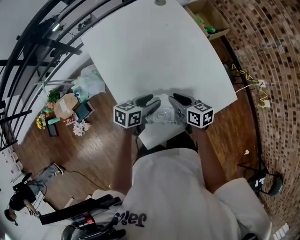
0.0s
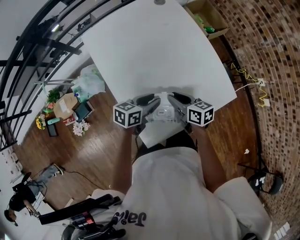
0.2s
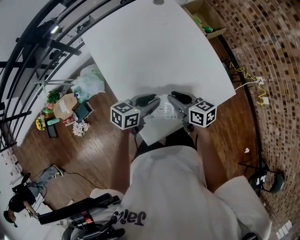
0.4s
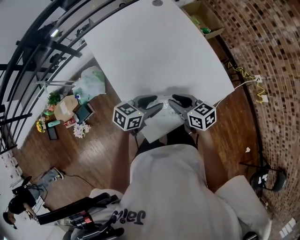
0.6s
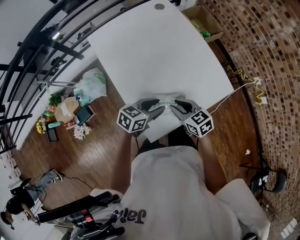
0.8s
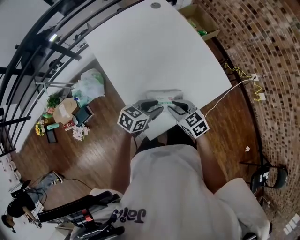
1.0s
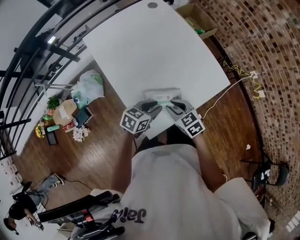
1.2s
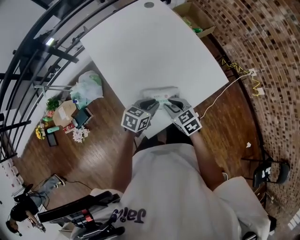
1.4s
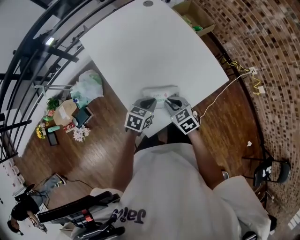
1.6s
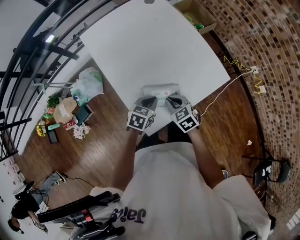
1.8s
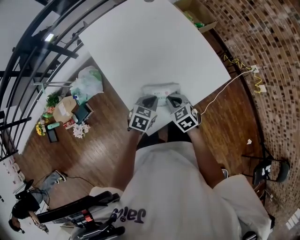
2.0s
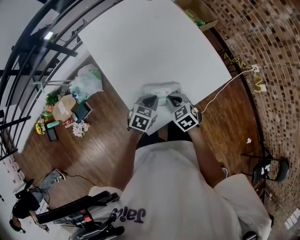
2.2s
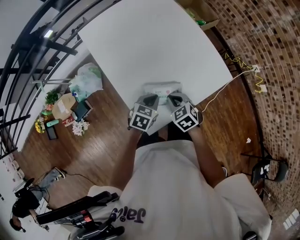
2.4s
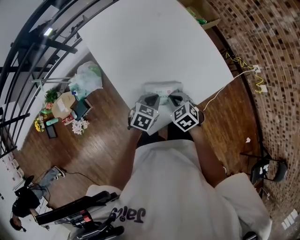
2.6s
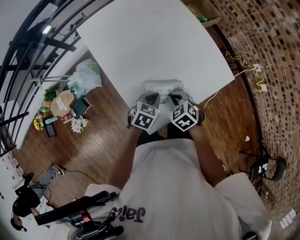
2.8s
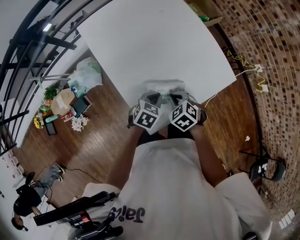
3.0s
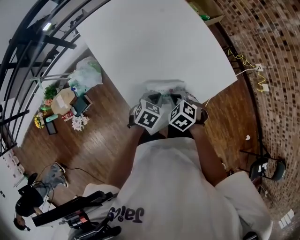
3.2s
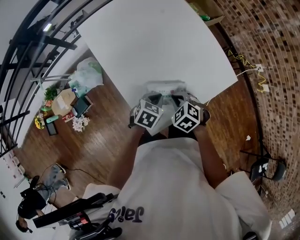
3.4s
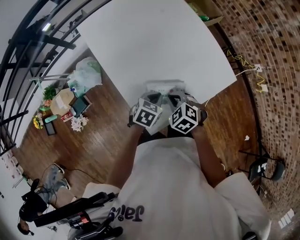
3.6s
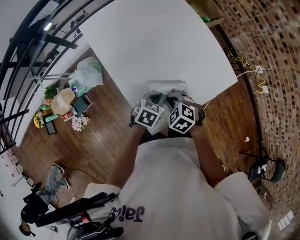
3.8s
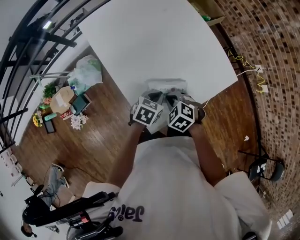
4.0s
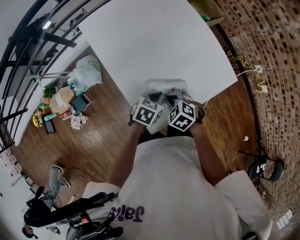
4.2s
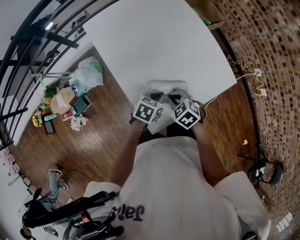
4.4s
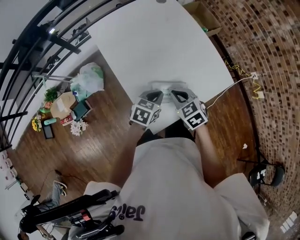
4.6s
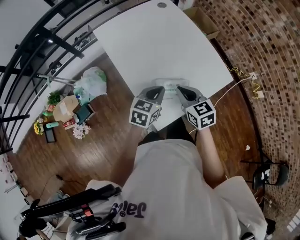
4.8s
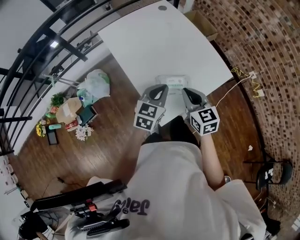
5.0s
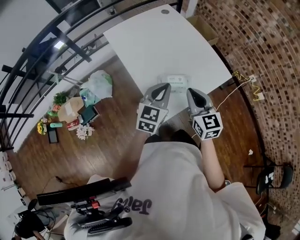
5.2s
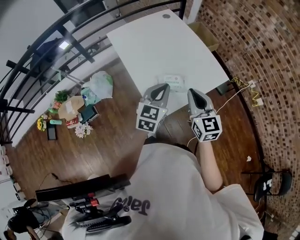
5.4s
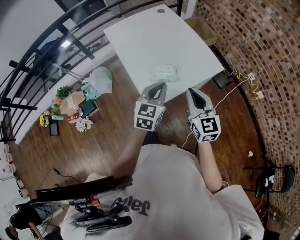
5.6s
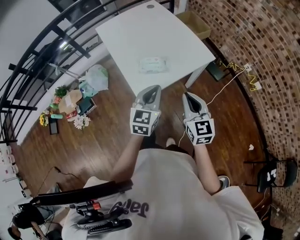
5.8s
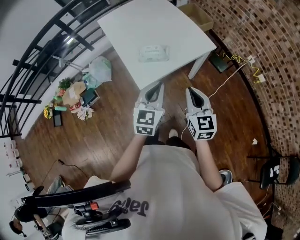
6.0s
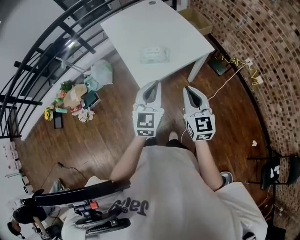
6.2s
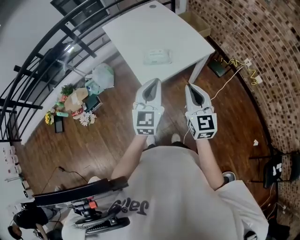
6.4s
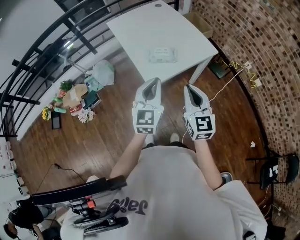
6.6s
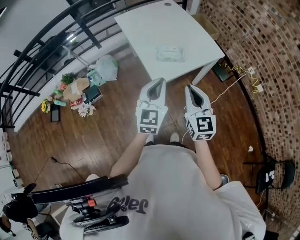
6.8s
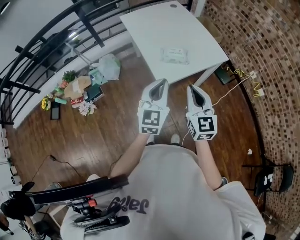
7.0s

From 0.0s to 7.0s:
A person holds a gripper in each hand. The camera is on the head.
From 0.0s to 1.4s: Both grippers move backward, some 10 cm. The left gripper closes up. The right gripper turns by about 30 degrees.
From 1.4s to 2.8s: The right gripper closes its fingers.
From 2.8s to 4.2s: The grippers stay close to where they were, moving slightly.
From 4.2s to 5.6s: The left gripper heads upward and backward, covering about 25 cm, and tilts its fingers approximately 30 degrees upward. Meanwhile the right gripper goes some 30 cm upward, backward and to the right, and tips its fingers upward by approximately 50 degrees.
From 5.6s to 7.0s: The left gripper moves backward and upward, approximately 15 cm, while the right gripper travels backward by roughly 15 cm.

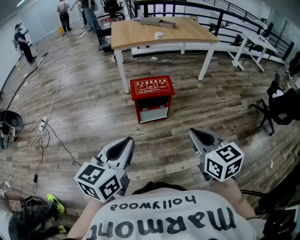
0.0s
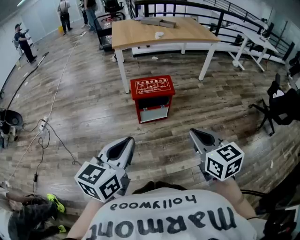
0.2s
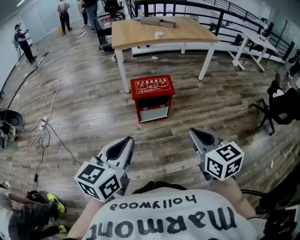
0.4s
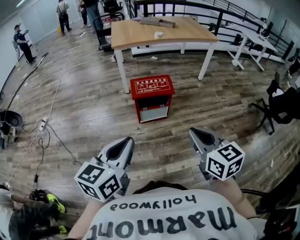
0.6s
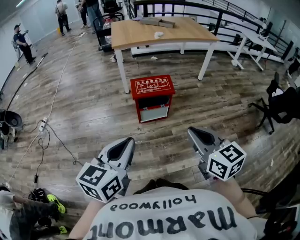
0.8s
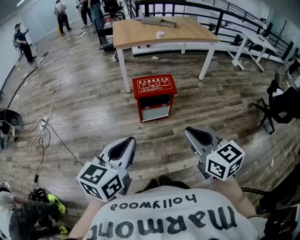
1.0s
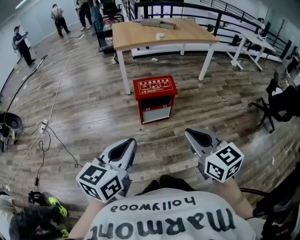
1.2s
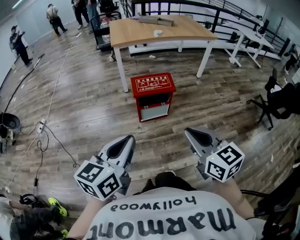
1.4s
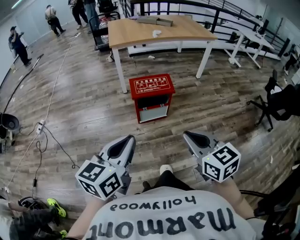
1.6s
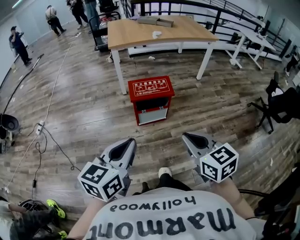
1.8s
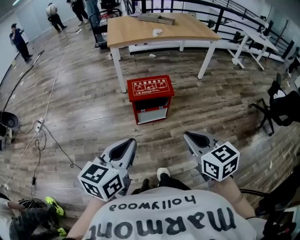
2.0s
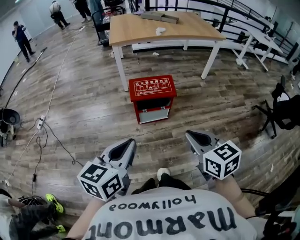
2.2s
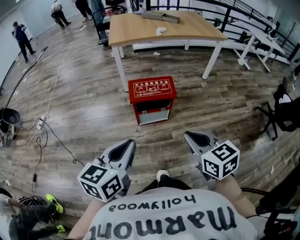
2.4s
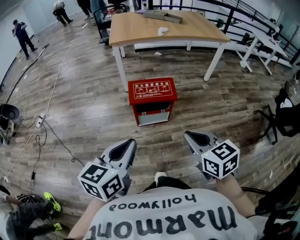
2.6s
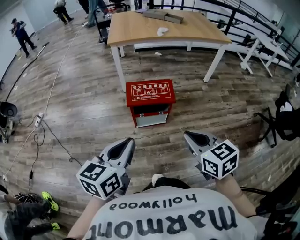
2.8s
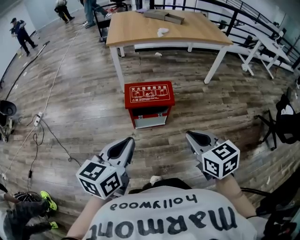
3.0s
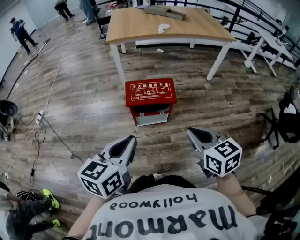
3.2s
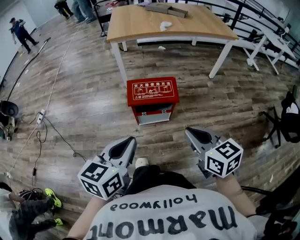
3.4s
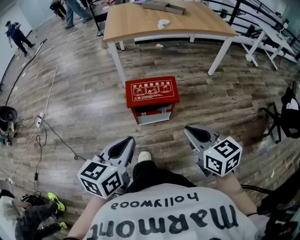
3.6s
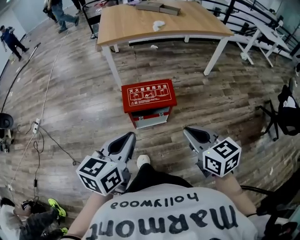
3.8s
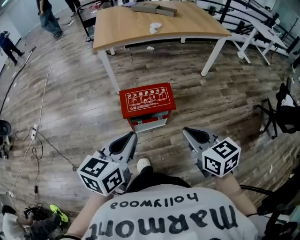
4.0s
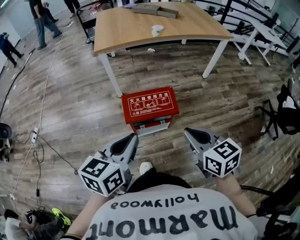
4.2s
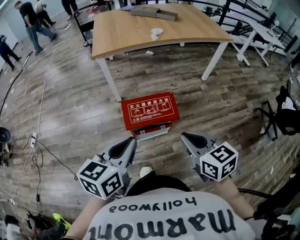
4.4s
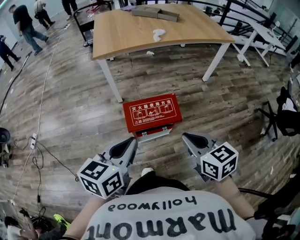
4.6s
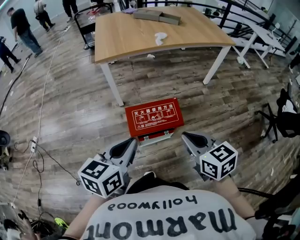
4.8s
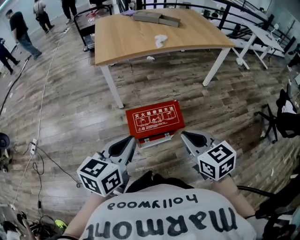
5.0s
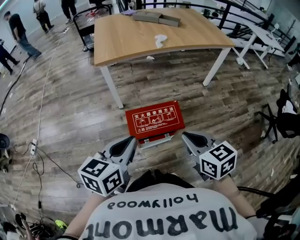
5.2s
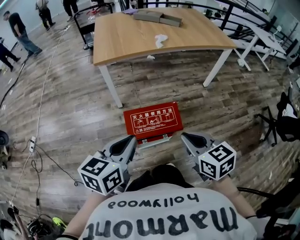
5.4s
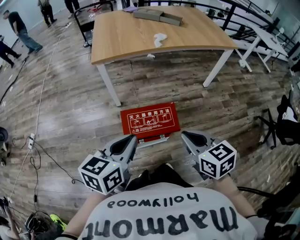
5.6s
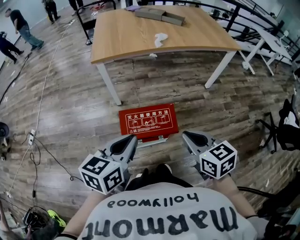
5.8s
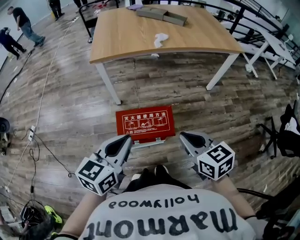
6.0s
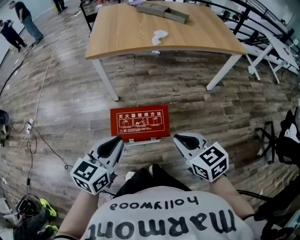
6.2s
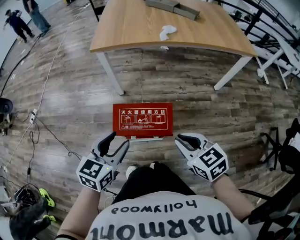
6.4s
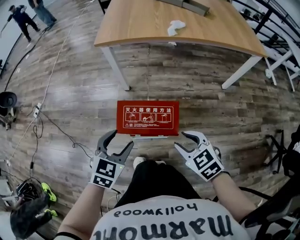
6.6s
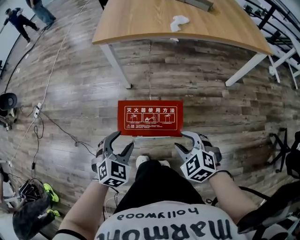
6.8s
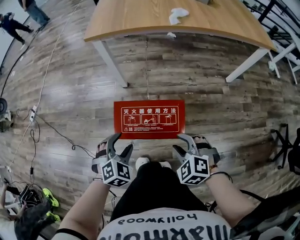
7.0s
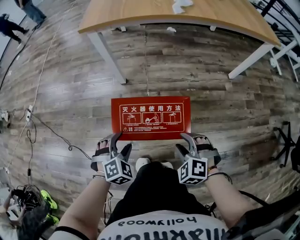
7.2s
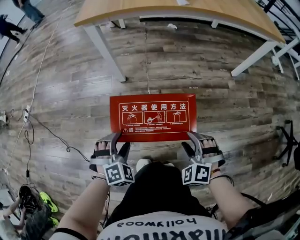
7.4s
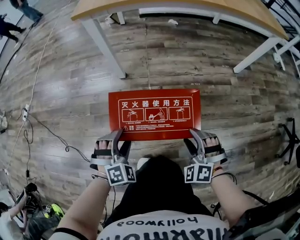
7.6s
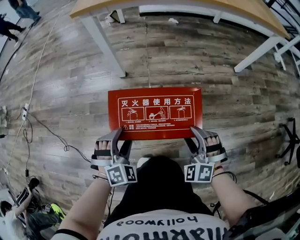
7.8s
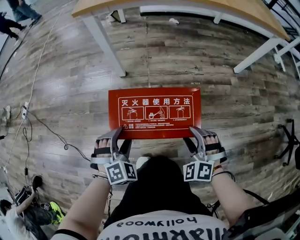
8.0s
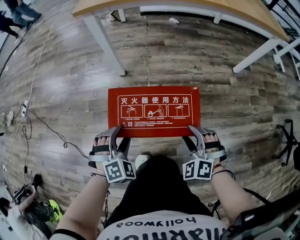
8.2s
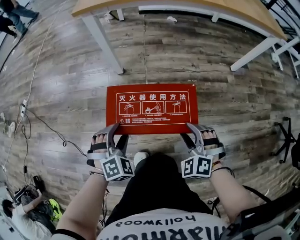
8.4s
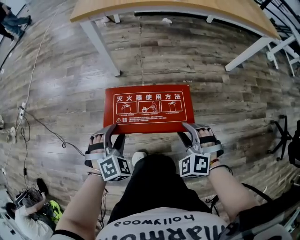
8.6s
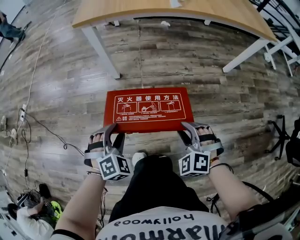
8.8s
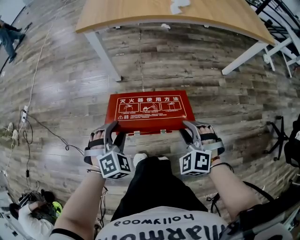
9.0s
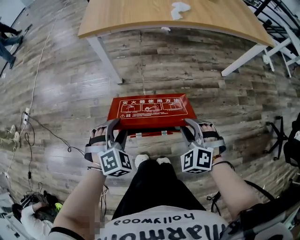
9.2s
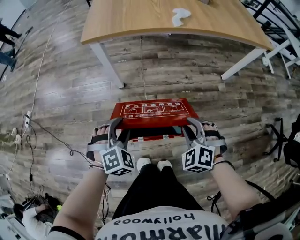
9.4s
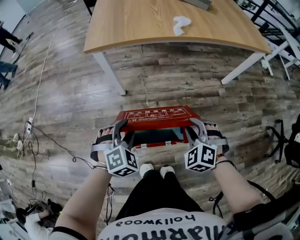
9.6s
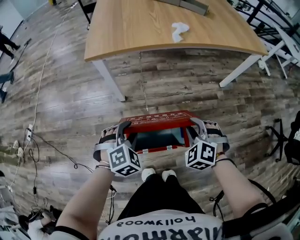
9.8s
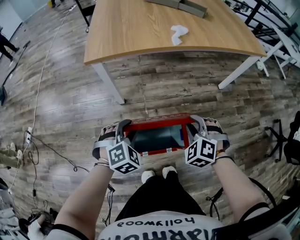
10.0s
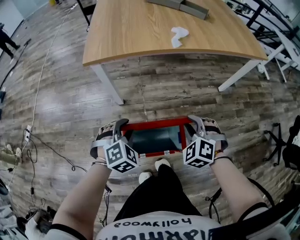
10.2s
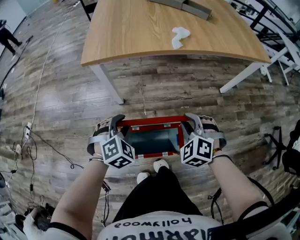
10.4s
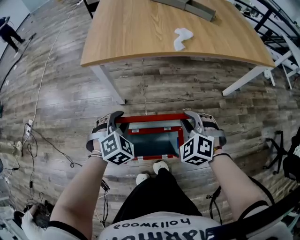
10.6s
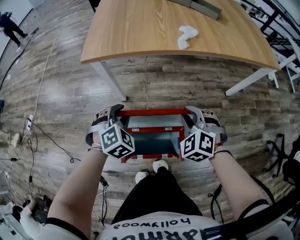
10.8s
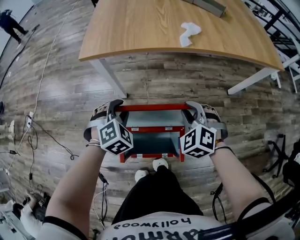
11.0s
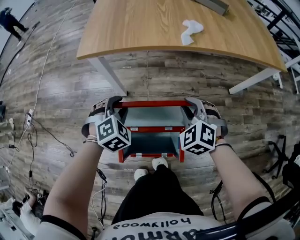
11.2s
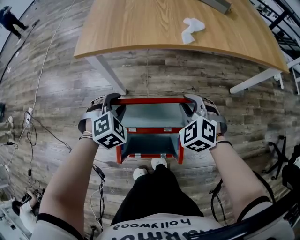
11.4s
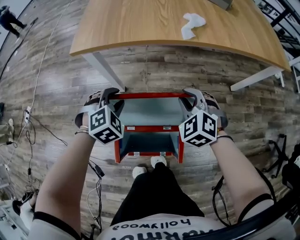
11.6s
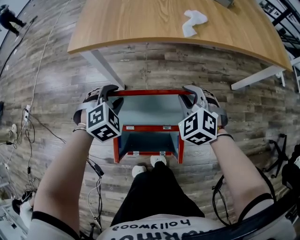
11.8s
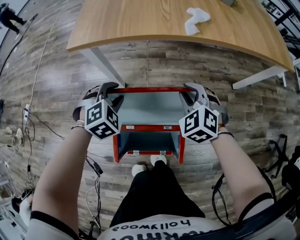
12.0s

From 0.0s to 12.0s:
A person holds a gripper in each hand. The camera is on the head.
From 0.0s to 1.6s: The grippers make only small movements.
From 1.6s to 3.0s: The left gripper heads forward, covering some 10 cm. The right gripper heads forward and to the right, covering some 15 cm.
From 3.0s to 4.4s: The right gripper is displaced forward and to the left by some 15 cm. Meanwhile the left gripper is displaced forward by roughly 15 cm.
From 4.4s to 6.0s: The two grippers go approximately 10 cm forward.
From 6.0s to 7.6s: Both grippers travel together downward, roughly 40 cm. The left gripper rotates around the line of its fingers by about 60 degrees, clockwise from behind, and opens up; the right gripper rolls counterclockwise, seen from behind, by roughly 70 degrees, and opens up.
From 7.6s to 9.0s: Both grippers move upward, some 10 cm. The right gripper closes.
From 9.0s to 10.4s: Both grippers travel together forward and upward, about 20 cm.
From 10.4s to 12.0s: The right gripper goes about 15 cm forward; the left gripper moves forward and downward, roughly 15 cm.

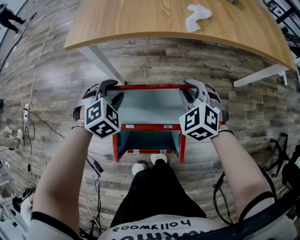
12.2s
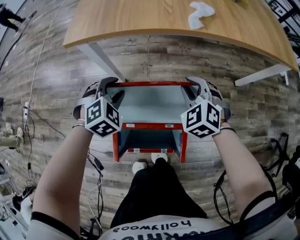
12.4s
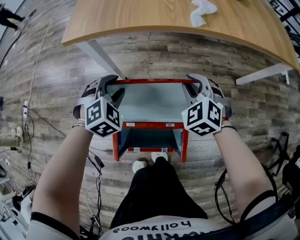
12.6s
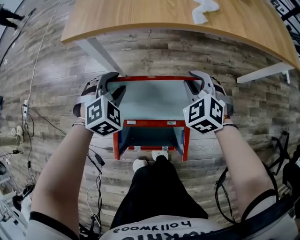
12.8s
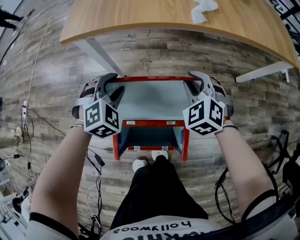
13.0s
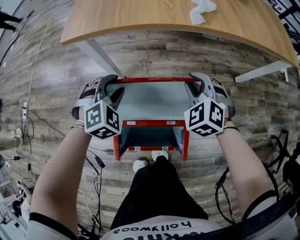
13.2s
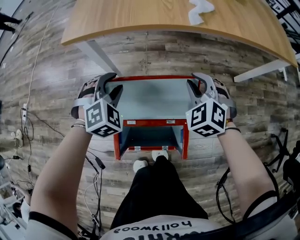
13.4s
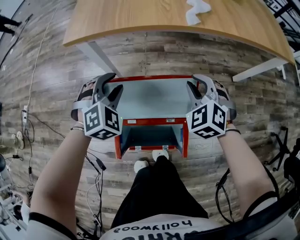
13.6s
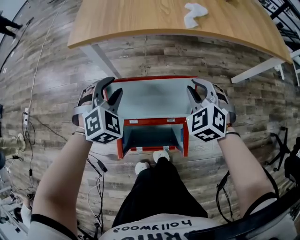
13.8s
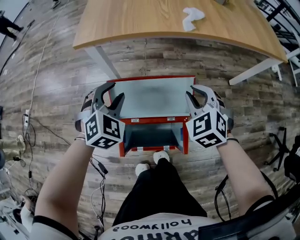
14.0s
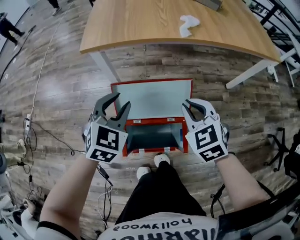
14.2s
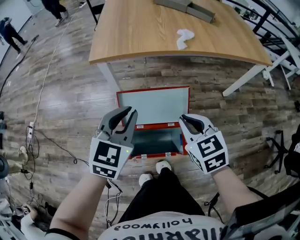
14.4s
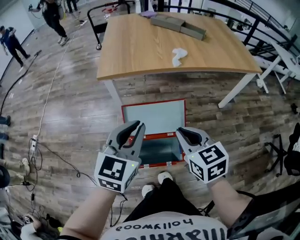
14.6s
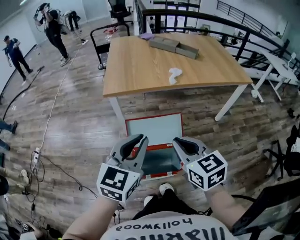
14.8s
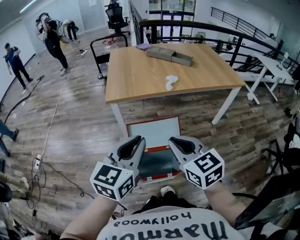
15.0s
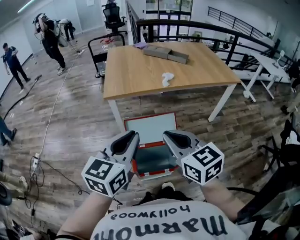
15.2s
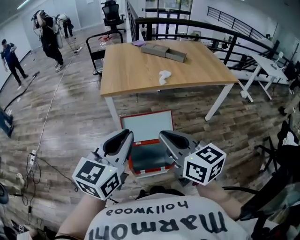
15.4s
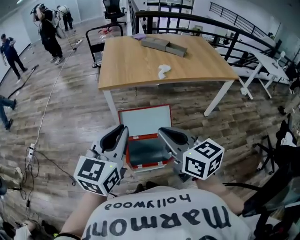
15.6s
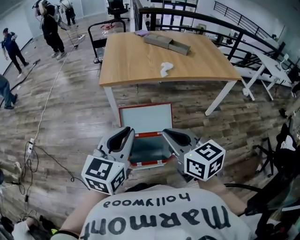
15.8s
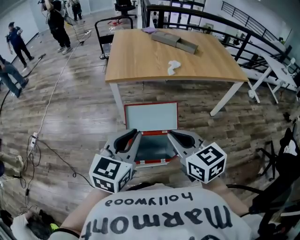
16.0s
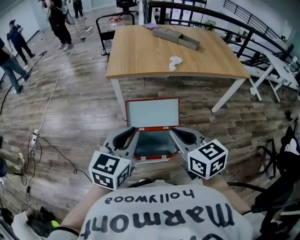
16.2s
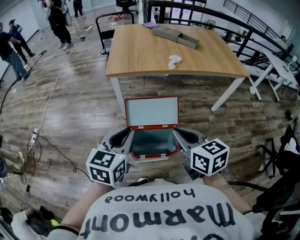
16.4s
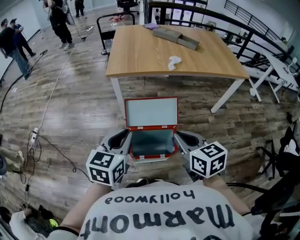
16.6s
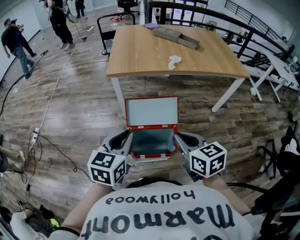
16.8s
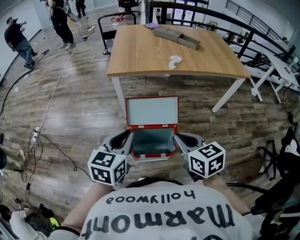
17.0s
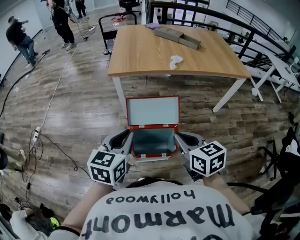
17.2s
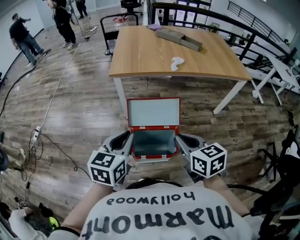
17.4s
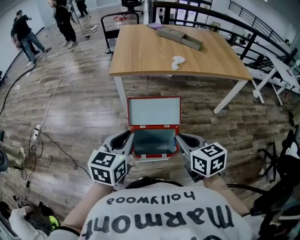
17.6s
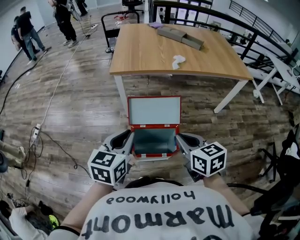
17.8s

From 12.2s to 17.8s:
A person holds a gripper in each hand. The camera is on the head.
From 12.2s to 13.6s: There are only small adjustments of the grippers.
From 13.6s to 15.0s: Both grippers move upward and backward, some 40 cm. The left gripper angles its fingers upward, by roughly 30 degrees, and closes its fingers; the right gripper rotates around the line of its fingers by some 40 degrees, clockwise from behind.
From 15.0s to 16.4s: The right gripper ends up about 5 cm from where it was. The left gripper is displaced downward by roughly 5 cm.
From 16.4s to 17.8s: The grippers stay close to where they were, moving slightly.
